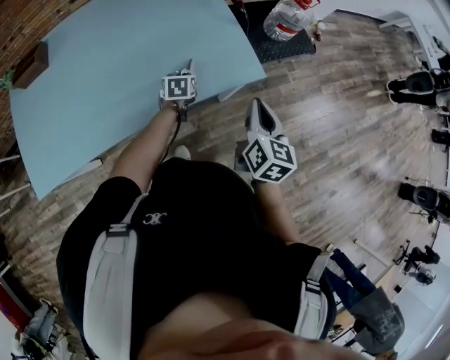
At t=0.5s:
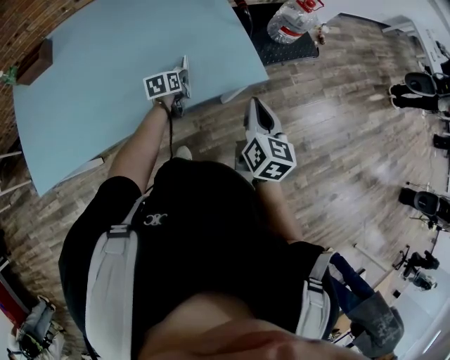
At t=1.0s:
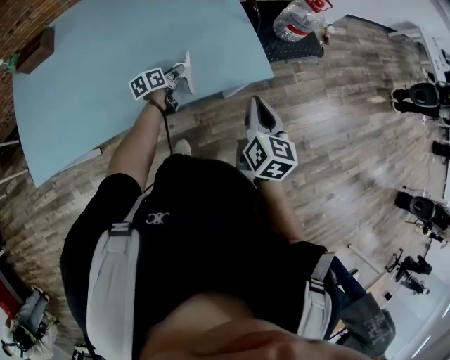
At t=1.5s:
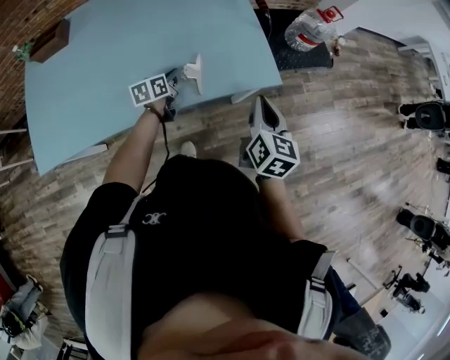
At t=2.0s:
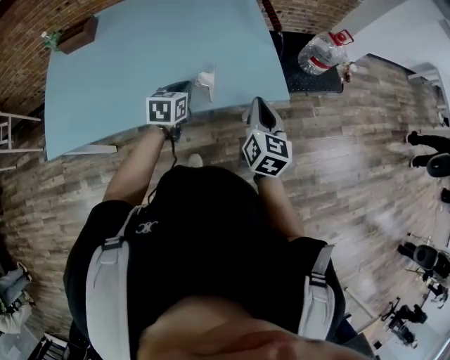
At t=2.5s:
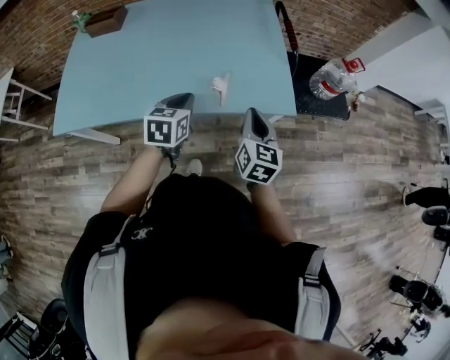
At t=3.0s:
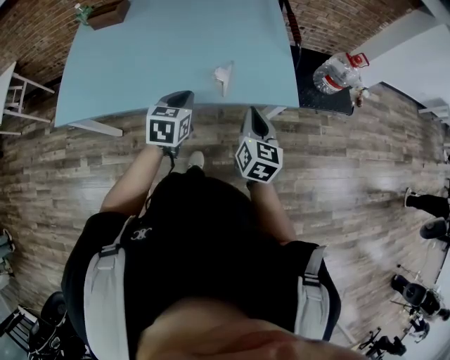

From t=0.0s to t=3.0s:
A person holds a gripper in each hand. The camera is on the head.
From t=0.0s to t=1.5s: The left gripper shifts roughly 10 cm to the left, swivels about 30 degrees, and opens, then closes once more.
From t=1.5s to t=3.0s: The right gripper travels to the left by about 5 cm. The left gripper heads backward and upward, covering approximately 25 cm, and swivels approximately 30 degrees.

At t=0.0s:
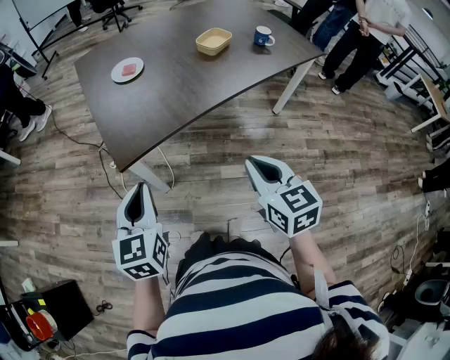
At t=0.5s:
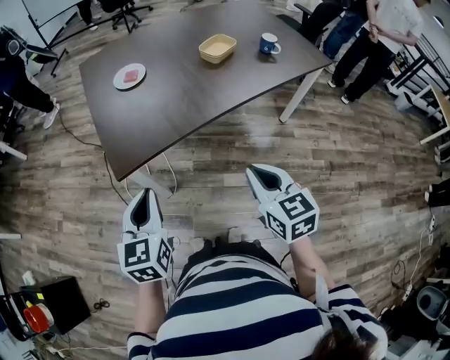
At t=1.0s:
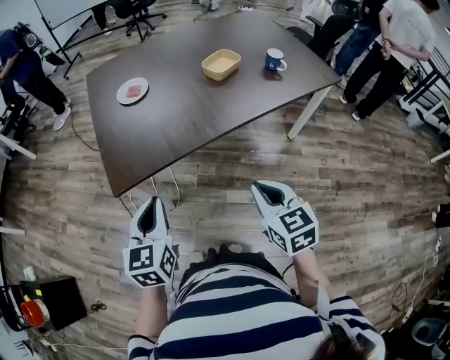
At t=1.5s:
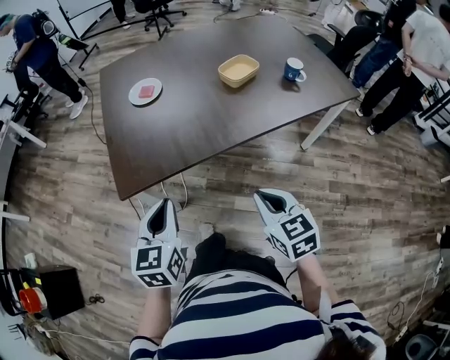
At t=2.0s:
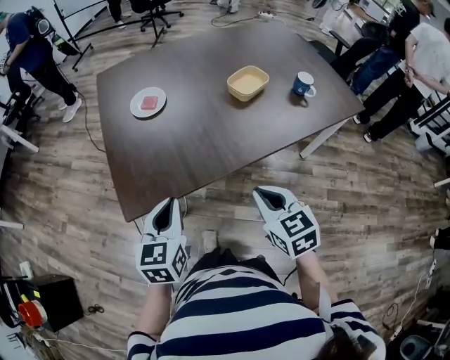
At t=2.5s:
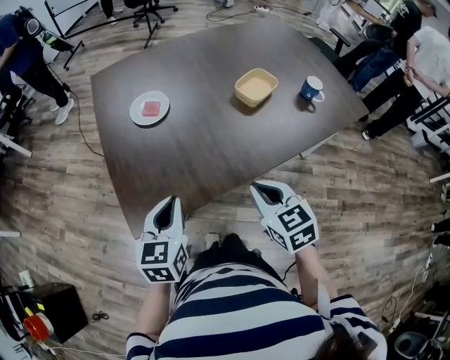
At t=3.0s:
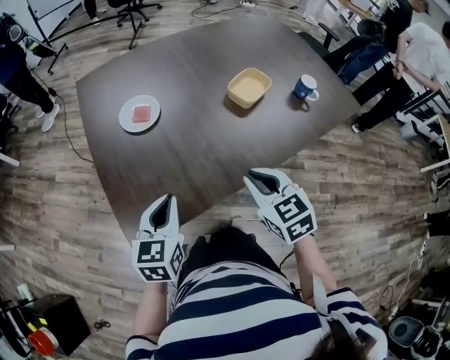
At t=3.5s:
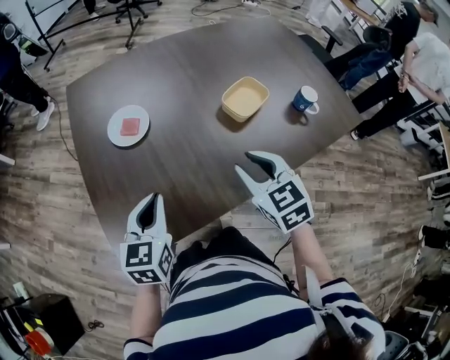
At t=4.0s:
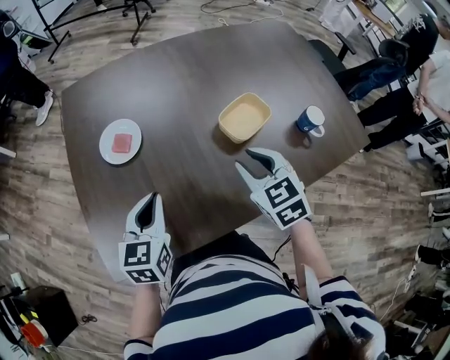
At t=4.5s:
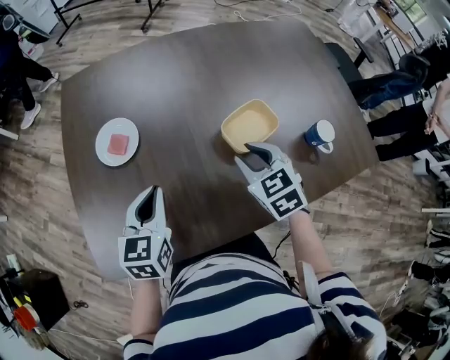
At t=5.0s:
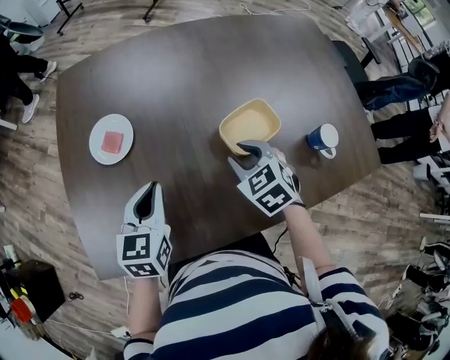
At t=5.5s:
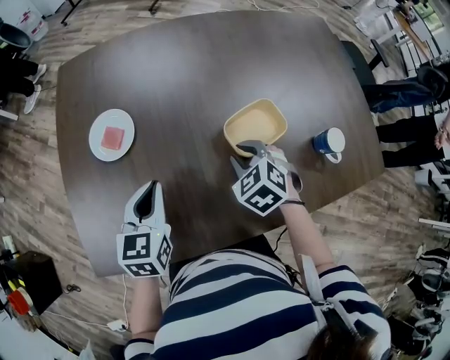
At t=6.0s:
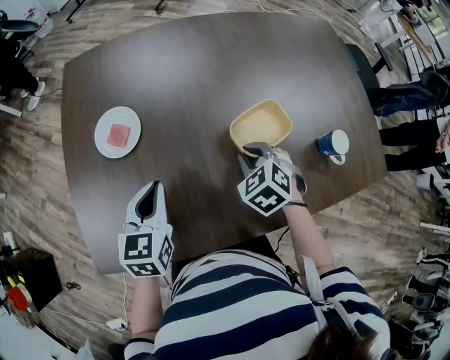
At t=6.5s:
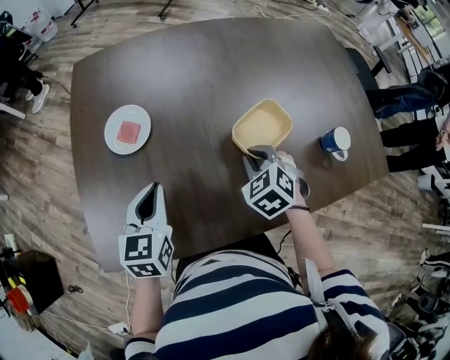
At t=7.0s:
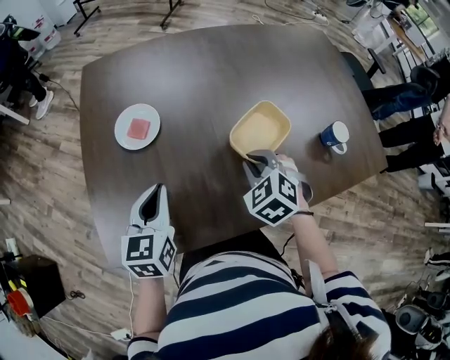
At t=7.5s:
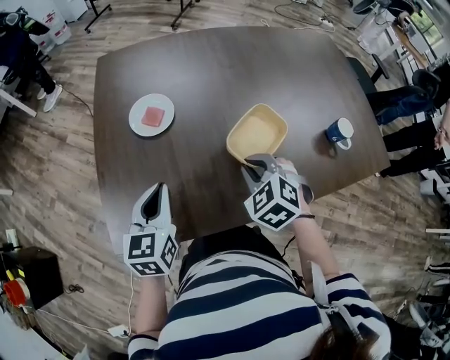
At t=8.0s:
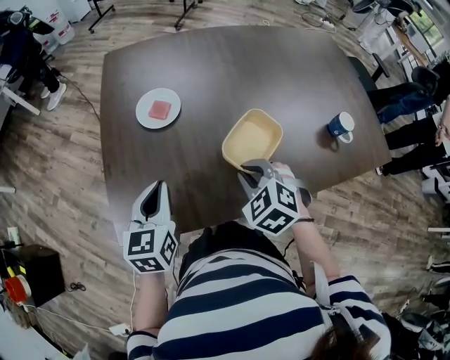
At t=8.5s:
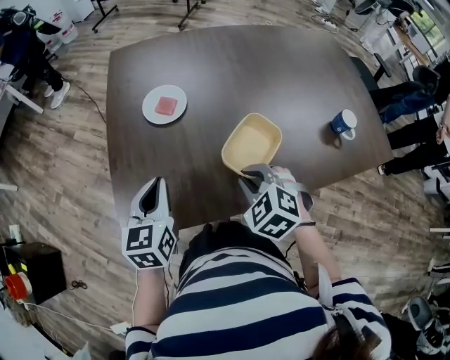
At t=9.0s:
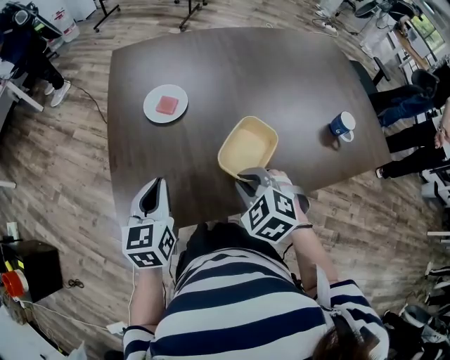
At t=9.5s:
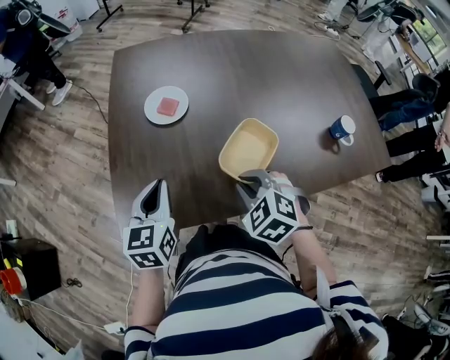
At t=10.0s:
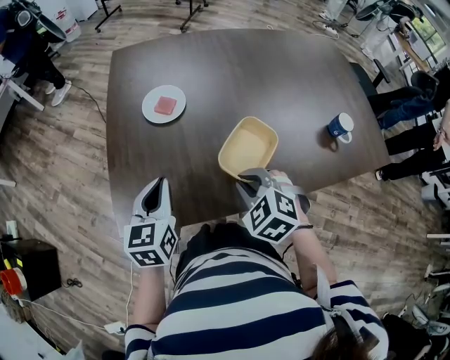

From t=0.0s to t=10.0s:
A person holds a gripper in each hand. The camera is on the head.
From t=0.0s to t=2.0s: The right gripper shifts about 20 cm forward; the left gripper is displaced forward and to the right by some 20 cm.
From t=2.0s to t=4.0s: The two grippers go approximately 30 cm forward. The right gripper opens its fingers.
From t=4.0s to t=6.0s: The left gripper moves forward, roughly 10 cm; the right gripper heads downward and forward, covering roughly 15 cm, and changes its angle by approximately 30 degrees.
From t=6.0s to t=8.0s: The right gripper moves backward, to the left and upward, some 25 cm. The left gripper shifts approximately 20 cm to the left and backward.
From t=8.0s to t=10.0s: There are only small adjustments of the grippers.

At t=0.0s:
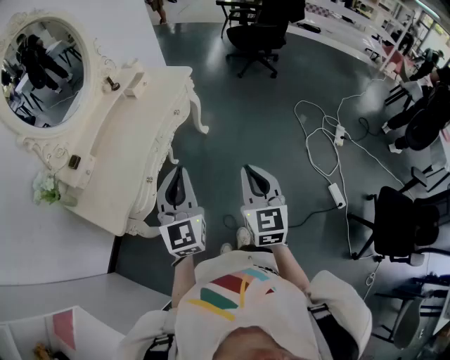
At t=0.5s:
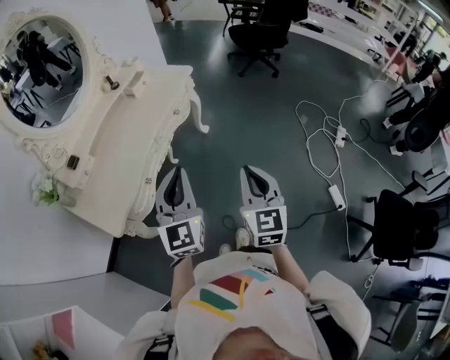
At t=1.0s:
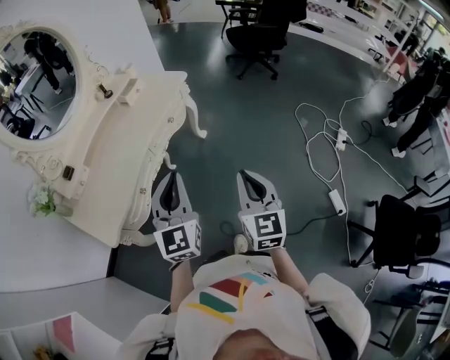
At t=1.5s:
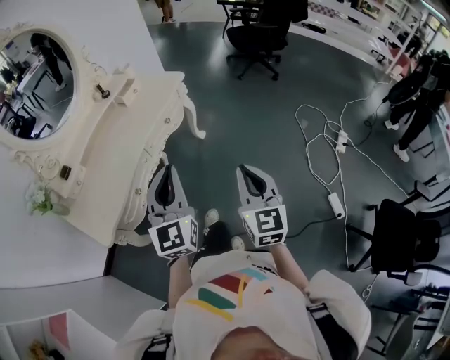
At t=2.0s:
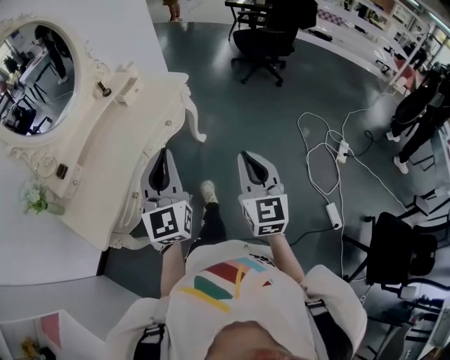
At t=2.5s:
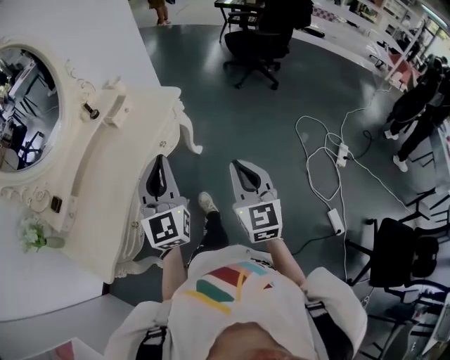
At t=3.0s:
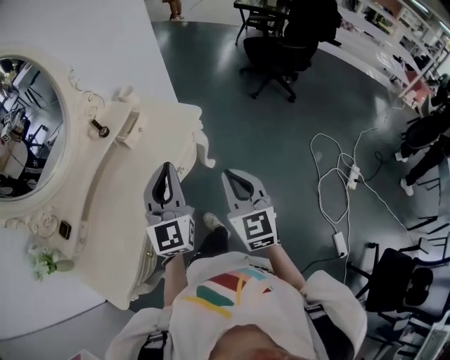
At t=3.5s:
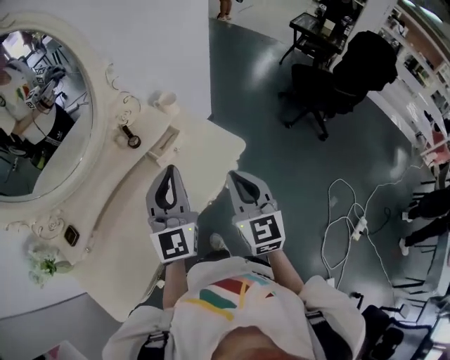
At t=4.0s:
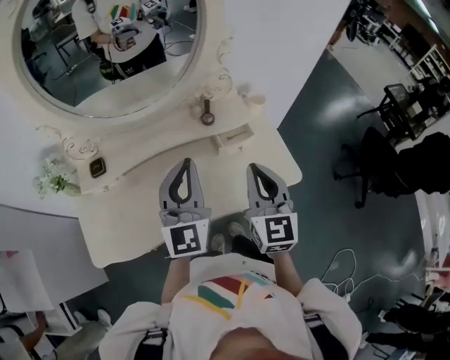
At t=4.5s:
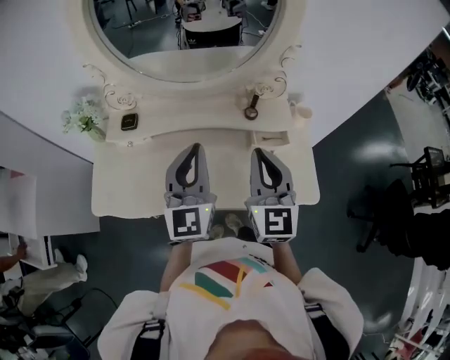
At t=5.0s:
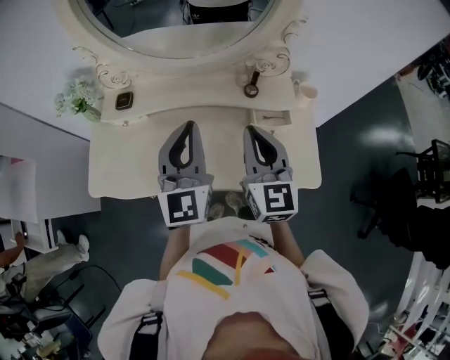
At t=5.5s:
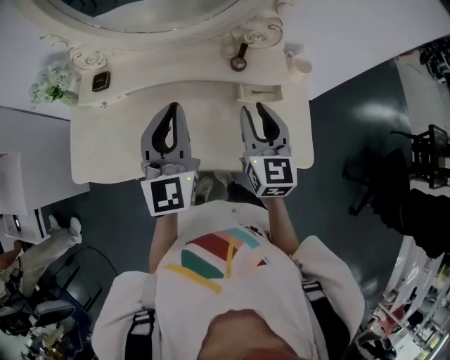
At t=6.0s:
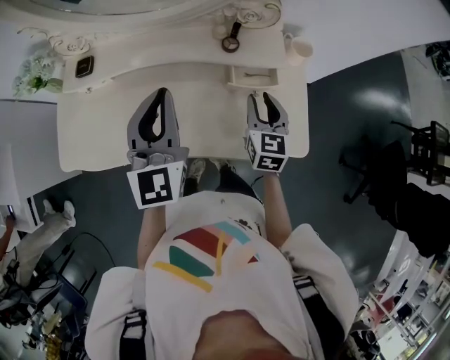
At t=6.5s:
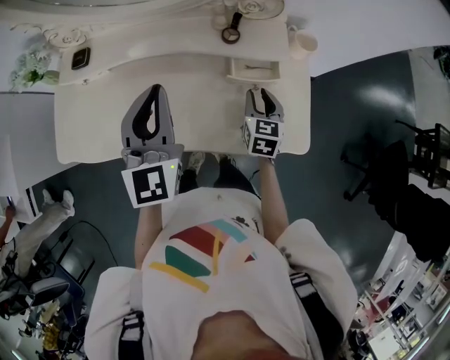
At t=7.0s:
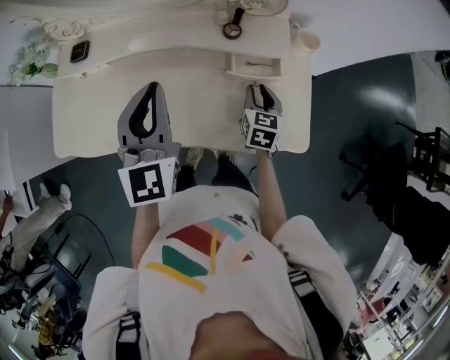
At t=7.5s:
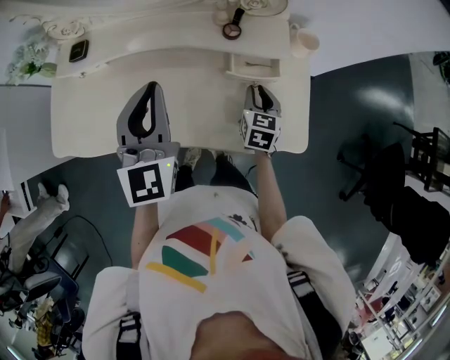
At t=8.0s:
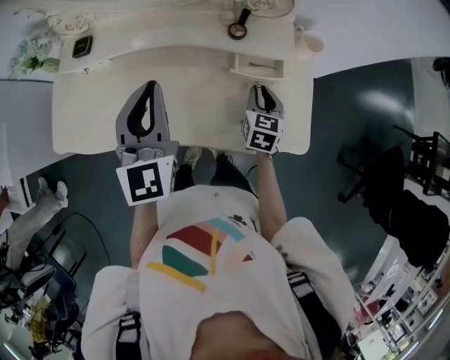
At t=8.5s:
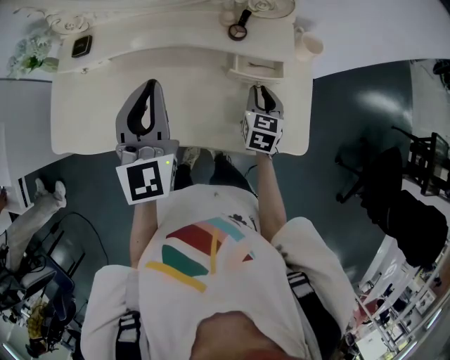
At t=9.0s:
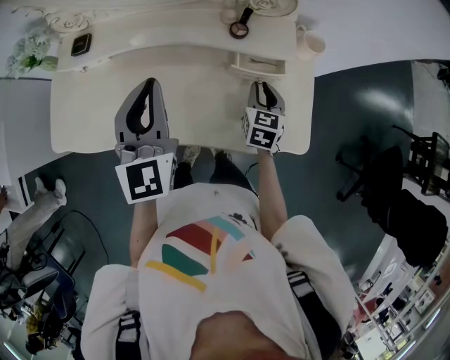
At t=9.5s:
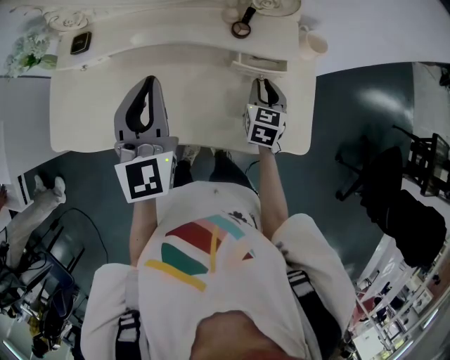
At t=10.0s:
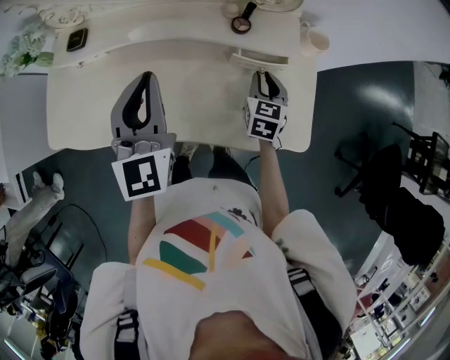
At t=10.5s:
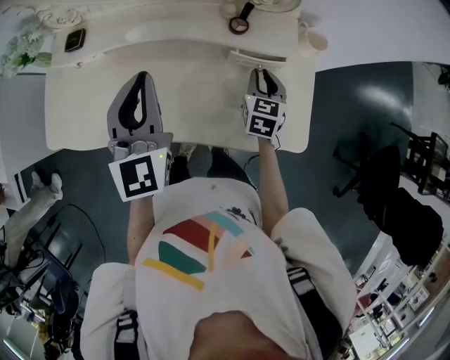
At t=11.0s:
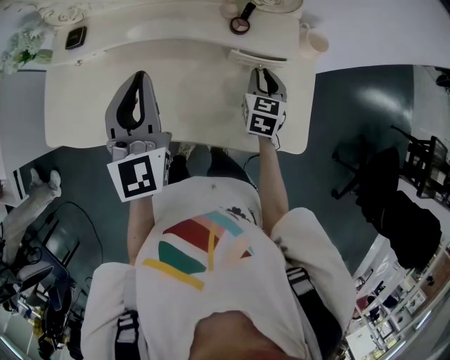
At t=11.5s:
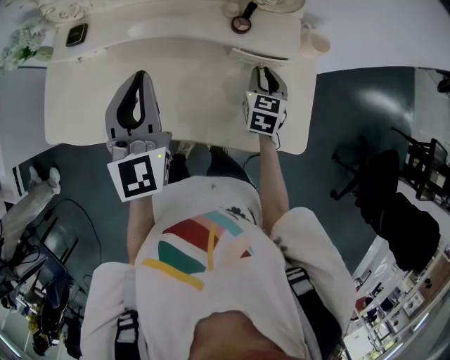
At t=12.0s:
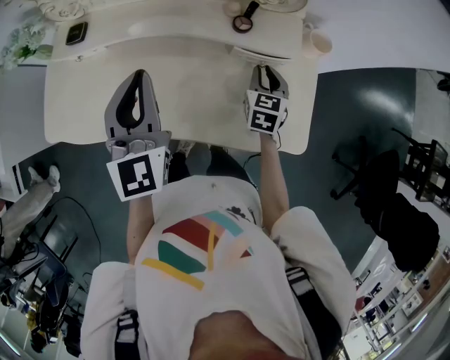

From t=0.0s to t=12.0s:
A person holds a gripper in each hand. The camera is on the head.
From t=0.0s to t=2.0s: Both grippers move forward and to the right, about 15 cm.
From t=2.0s to t=4.0s: Both grippers are carried approximately 50 cm. The left gripper swivels roughly 40 degrees. Meanwhile the right gripper turns by some 50 degrees.
From t=4.0s to t=6.0s: The right gripper travels downward and forward by about 20 cm, changes its angle by about 20 degrees, and opens its fingers. Meanwhile the left gripper moves about 5 cm, and turns by some 20 degrees.
From t=6.0s to t=8.0s: The right gripper shifts approximately 10 cm downward.
From t=8.0s to t=12.0s: The grippers make only small movements.

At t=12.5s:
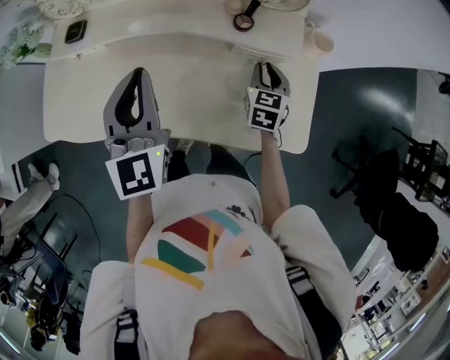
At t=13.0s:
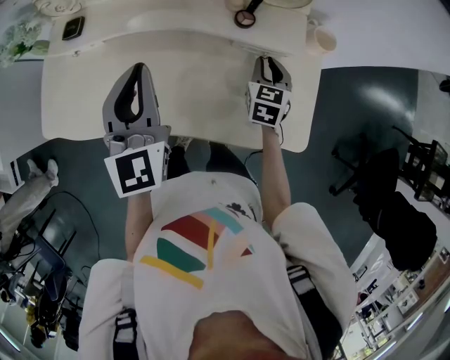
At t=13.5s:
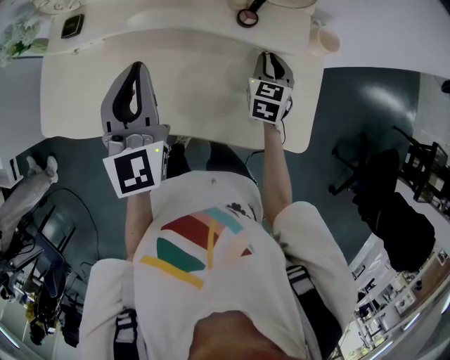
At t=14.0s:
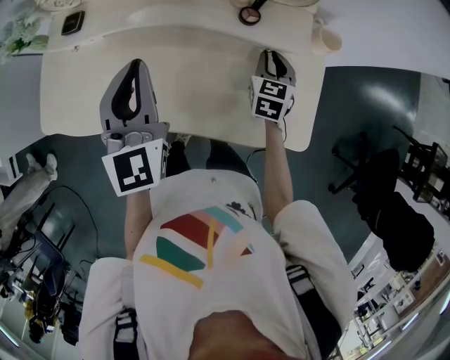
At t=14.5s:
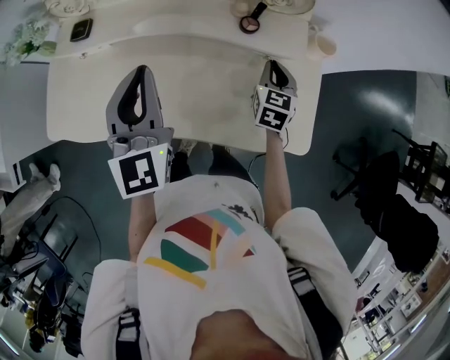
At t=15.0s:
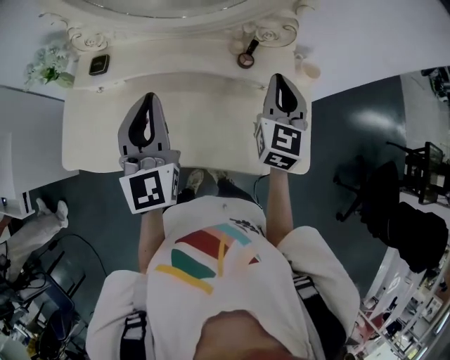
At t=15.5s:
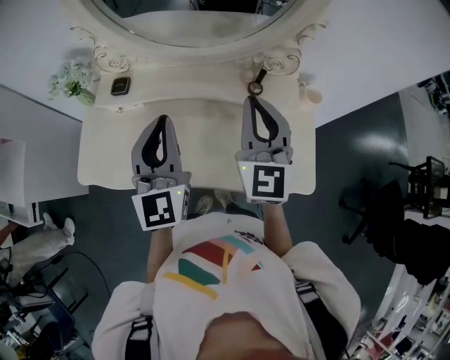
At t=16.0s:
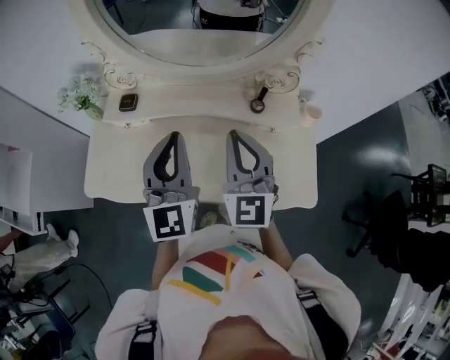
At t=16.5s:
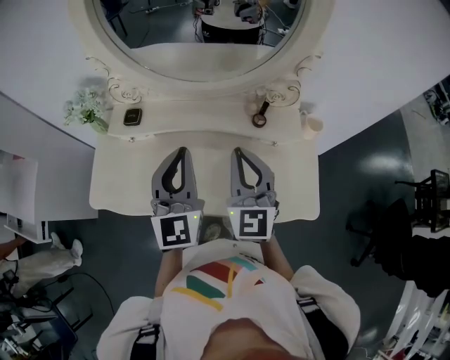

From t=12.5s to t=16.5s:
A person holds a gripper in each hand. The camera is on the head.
From t=12.5s to t=14.5s: There are only small adjustments of the grippers.
From t=14.5s to t=16.5s: The left gripper heads upward, covering roughly 5 cm. Meanwhile the right gripper is displaced upward and to the left by approximately 30 cm, and rotates some 30 degrees.
